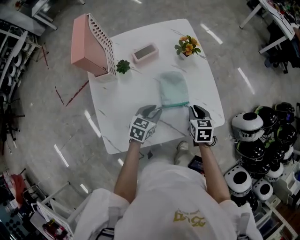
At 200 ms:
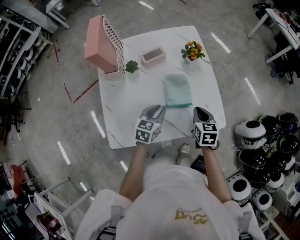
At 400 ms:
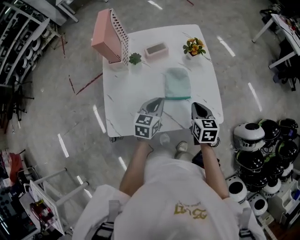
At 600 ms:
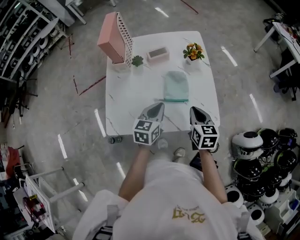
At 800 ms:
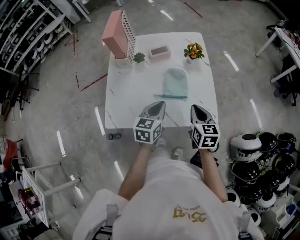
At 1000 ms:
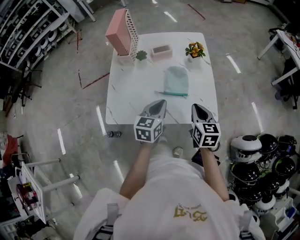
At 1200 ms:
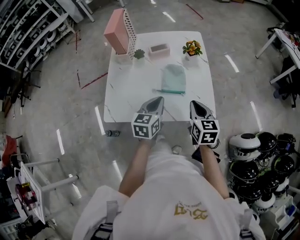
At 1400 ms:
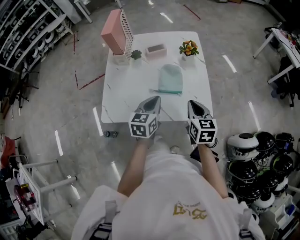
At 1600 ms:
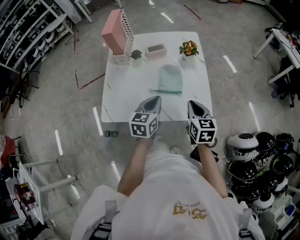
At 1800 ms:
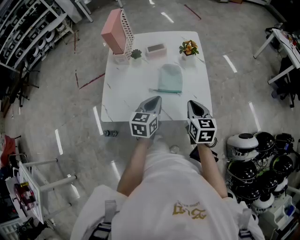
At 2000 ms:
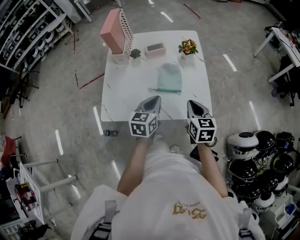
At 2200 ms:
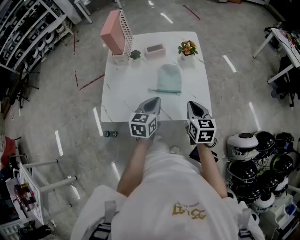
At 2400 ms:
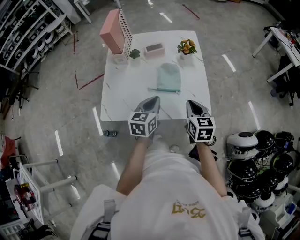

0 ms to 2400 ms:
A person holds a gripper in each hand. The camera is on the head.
0 ms to 1200 ms: The two grippers go roughly 15 cm upward and backward. The left gripper rotates approximately 30 degrees, and closes; the right gripper changes its angle by roughly 30 degrees.
1200 ms to 2400 ms: There are only small adjustments of the grippers.

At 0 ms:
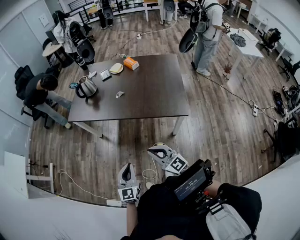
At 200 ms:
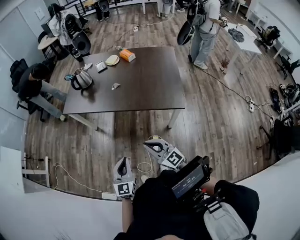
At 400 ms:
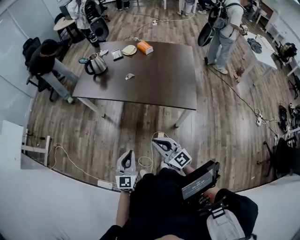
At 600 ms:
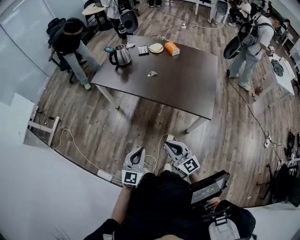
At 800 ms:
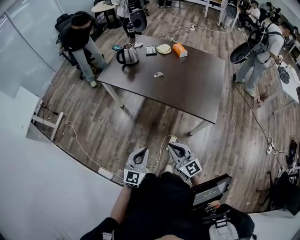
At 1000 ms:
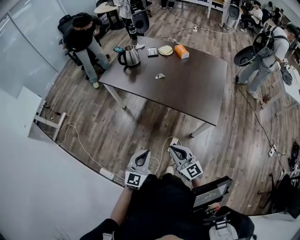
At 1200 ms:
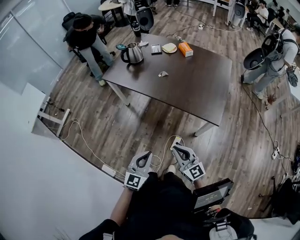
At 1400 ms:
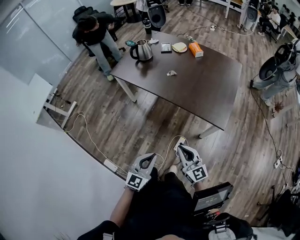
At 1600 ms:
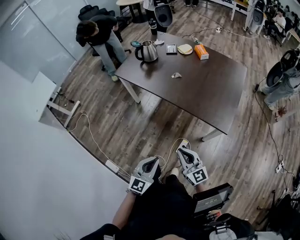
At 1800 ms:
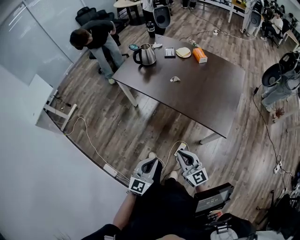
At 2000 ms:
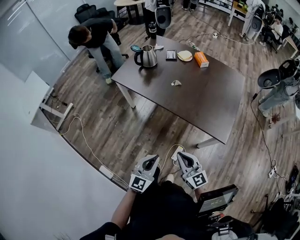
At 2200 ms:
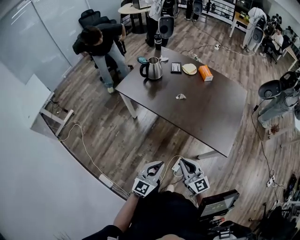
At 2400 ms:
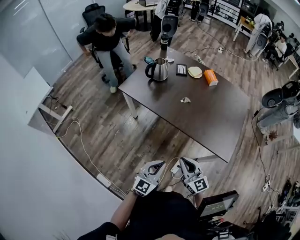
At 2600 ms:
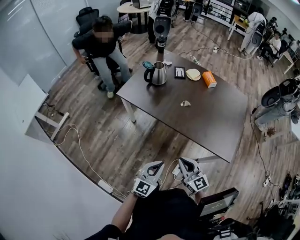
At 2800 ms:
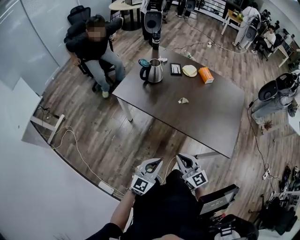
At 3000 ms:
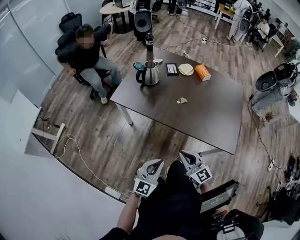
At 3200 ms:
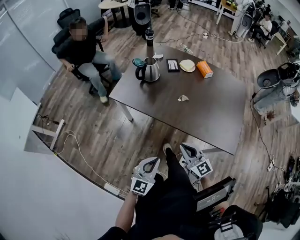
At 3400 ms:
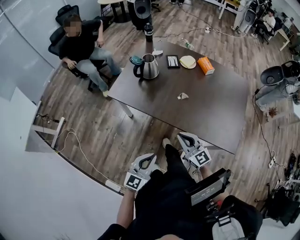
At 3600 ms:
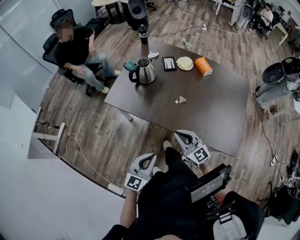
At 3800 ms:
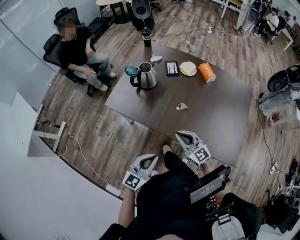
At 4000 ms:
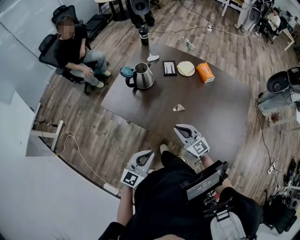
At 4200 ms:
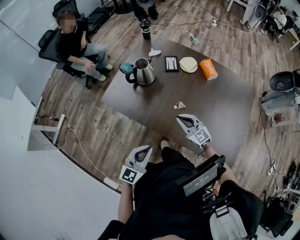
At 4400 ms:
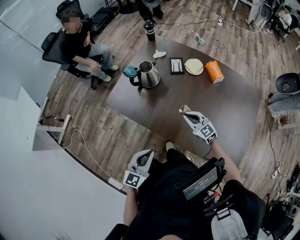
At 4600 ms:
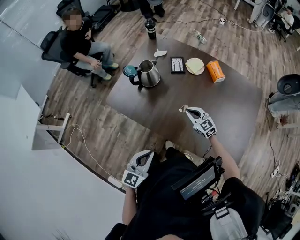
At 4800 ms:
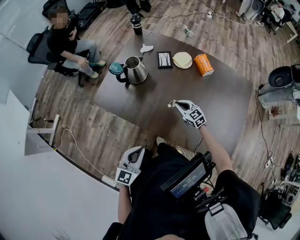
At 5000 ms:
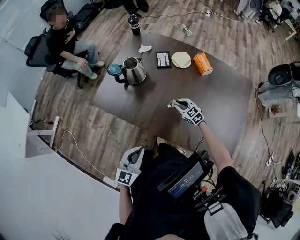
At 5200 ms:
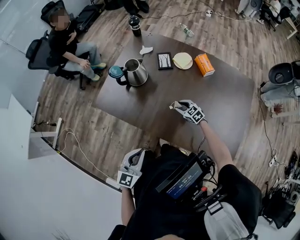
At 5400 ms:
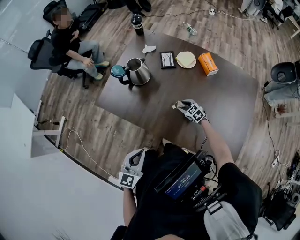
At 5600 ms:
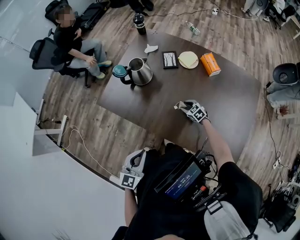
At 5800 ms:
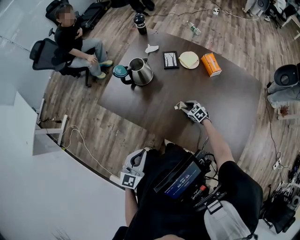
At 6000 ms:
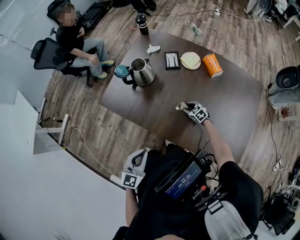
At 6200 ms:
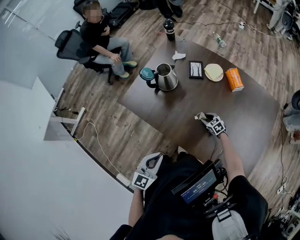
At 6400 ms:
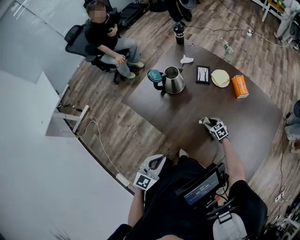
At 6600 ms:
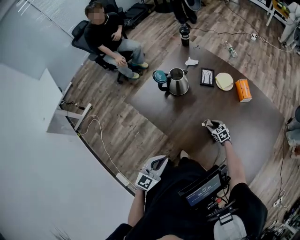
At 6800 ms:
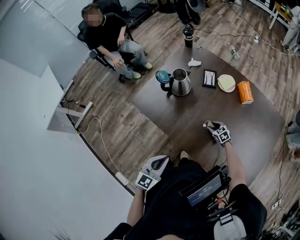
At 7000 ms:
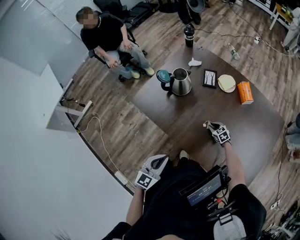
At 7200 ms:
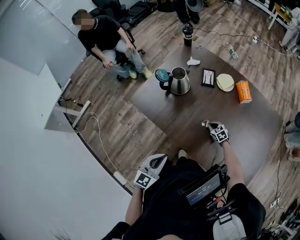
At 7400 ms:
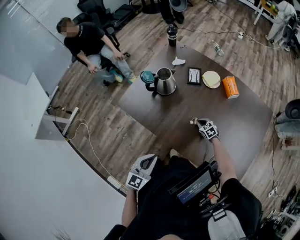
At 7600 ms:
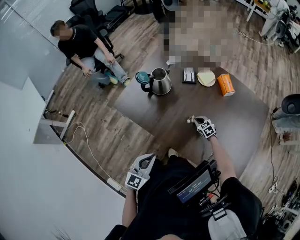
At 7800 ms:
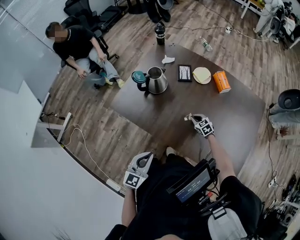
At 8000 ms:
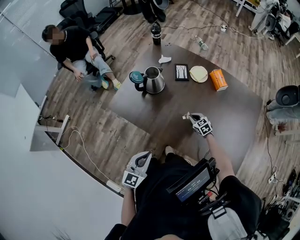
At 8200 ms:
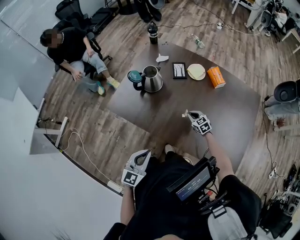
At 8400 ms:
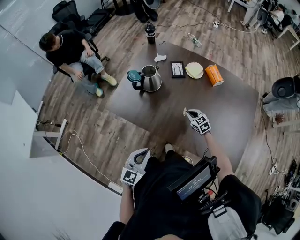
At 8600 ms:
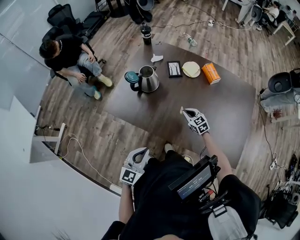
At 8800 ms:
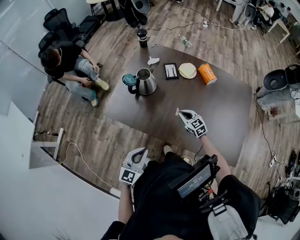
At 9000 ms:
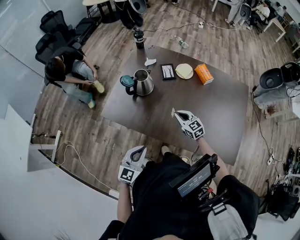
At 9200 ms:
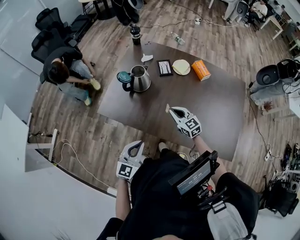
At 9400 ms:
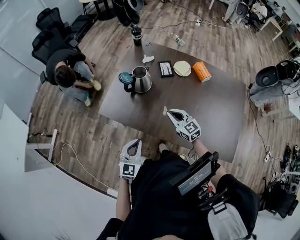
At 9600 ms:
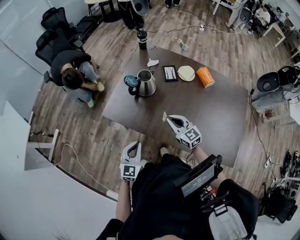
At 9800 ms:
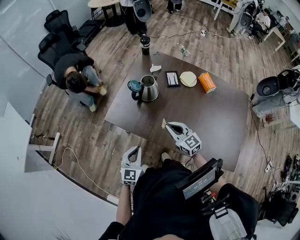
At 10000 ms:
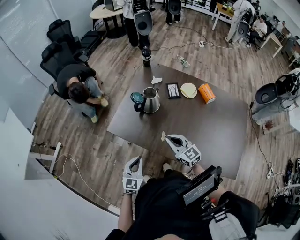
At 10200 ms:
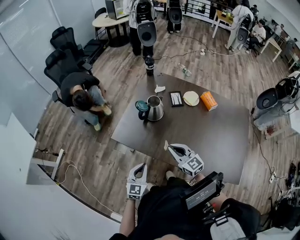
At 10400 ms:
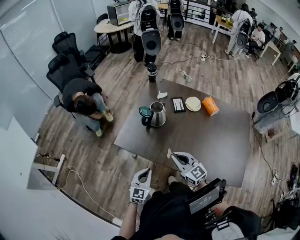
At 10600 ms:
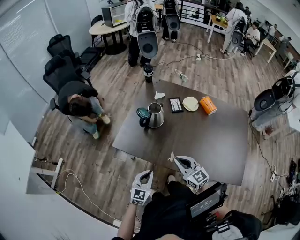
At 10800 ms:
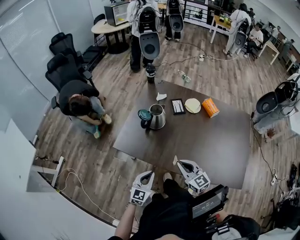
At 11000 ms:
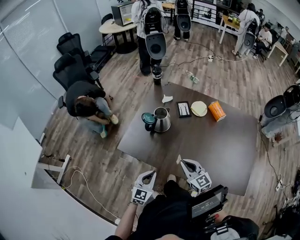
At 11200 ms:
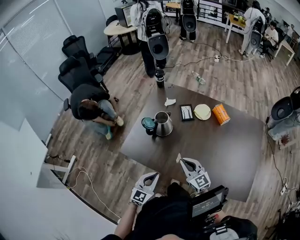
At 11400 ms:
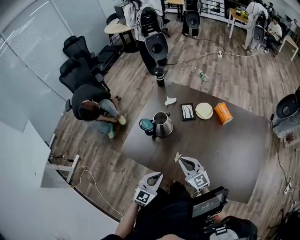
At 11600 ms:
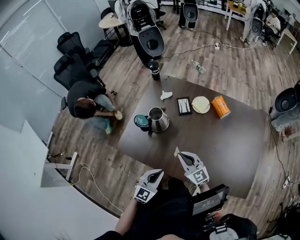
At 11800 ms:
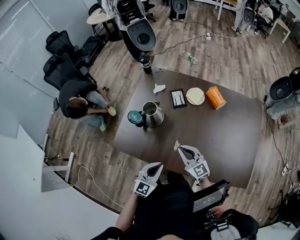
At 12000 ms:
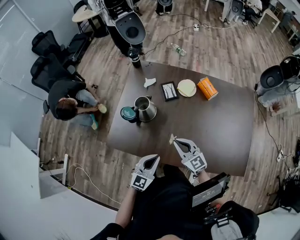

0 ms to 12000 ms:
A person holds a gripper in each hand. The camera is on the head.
0 ms to 1600 ms: The right gripper moves roughly 5 cm. Meanwhile the left gripper moves to the right, roughly 5 cm.
1600 ms to 3000 ms: The grippers both shift forward and to the left by roughly 25 cm.
3000 ms to 4400 ms: The right gripper shifts roughly 35 cm forward. The left gripper heads forward, covering approximately 20 cm.
4400 ms to 6000 ms: The right gripper goes some 25 cm downward, points its fingers approximately 30 degrees further downward, and opens up.
6000 ms to 7600 ms: The right gripper closes its fingers.
7600 ms to 9000 ms: The right gripper moves upward and to the left, roughly 20 cm, and rotates roughly 30 degrees; the left gripper changes place by roughly 5 cm.
9000 ms to 10400 ms: The left gripper shifts approximately 5 cm to the left, while the right gripper shifts about 20 cm to the left, upward and backward.
10400 ms to 12000 ms: The left gripper travels to the right and forward by some 15 cm. Meanwhile the right gripper travels forward, to the right and downward by roughly 15 cm.

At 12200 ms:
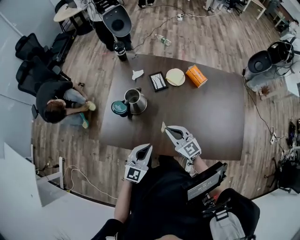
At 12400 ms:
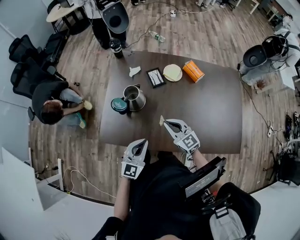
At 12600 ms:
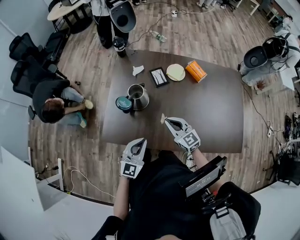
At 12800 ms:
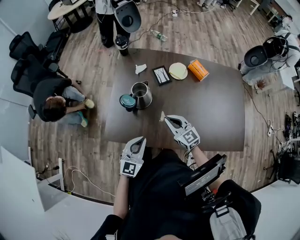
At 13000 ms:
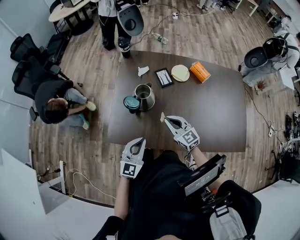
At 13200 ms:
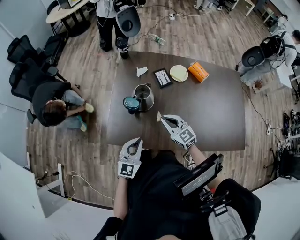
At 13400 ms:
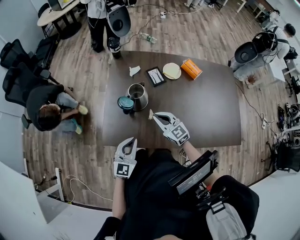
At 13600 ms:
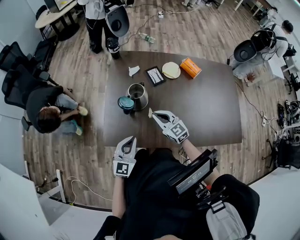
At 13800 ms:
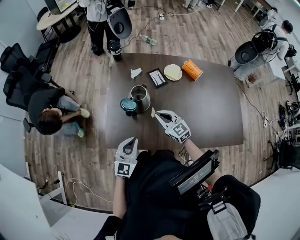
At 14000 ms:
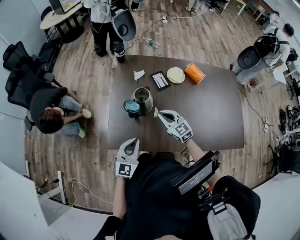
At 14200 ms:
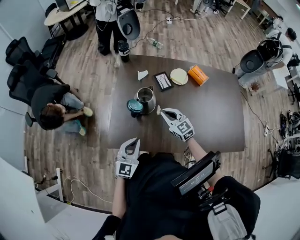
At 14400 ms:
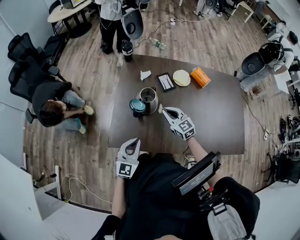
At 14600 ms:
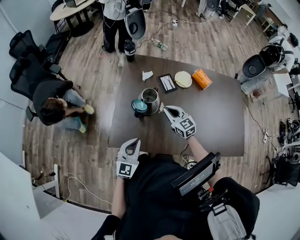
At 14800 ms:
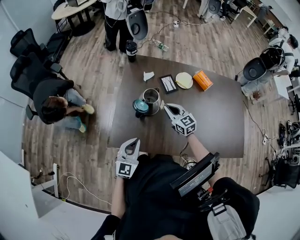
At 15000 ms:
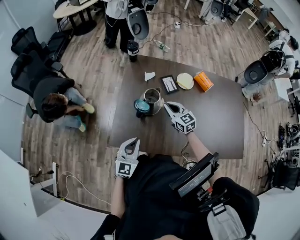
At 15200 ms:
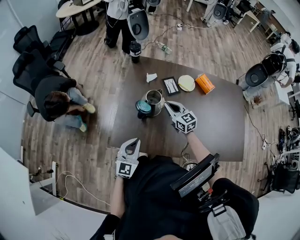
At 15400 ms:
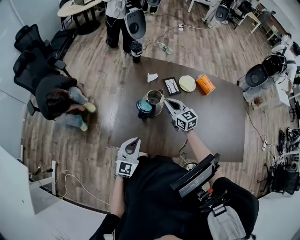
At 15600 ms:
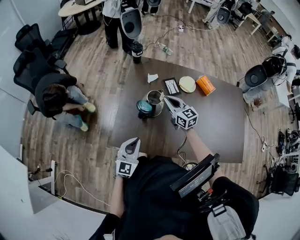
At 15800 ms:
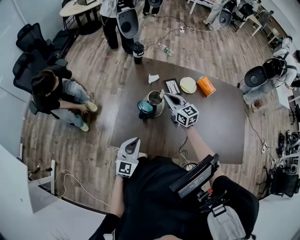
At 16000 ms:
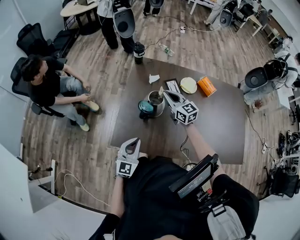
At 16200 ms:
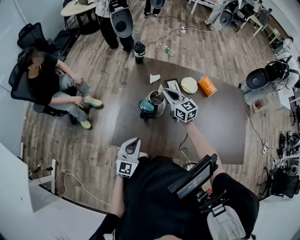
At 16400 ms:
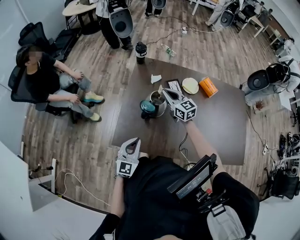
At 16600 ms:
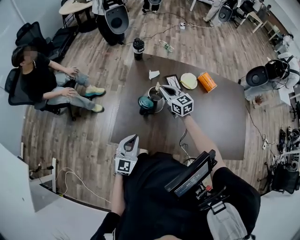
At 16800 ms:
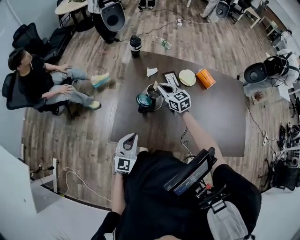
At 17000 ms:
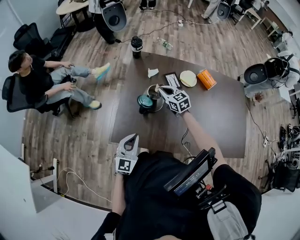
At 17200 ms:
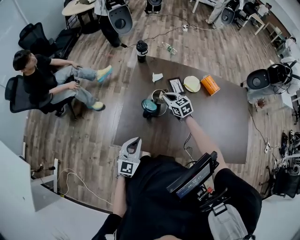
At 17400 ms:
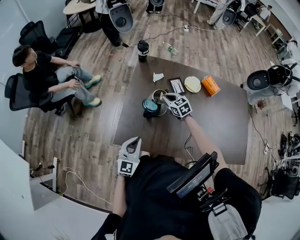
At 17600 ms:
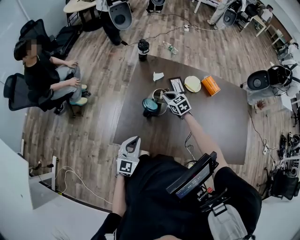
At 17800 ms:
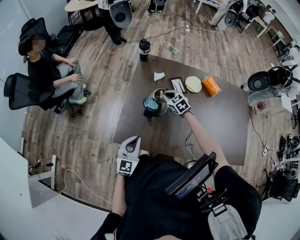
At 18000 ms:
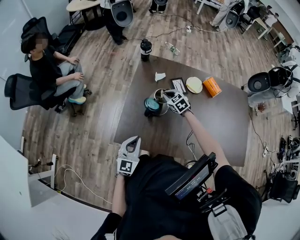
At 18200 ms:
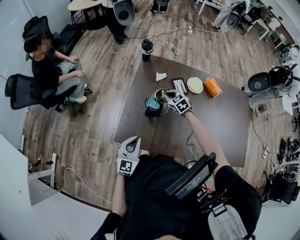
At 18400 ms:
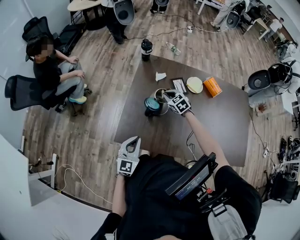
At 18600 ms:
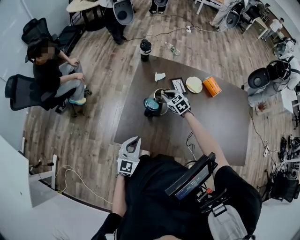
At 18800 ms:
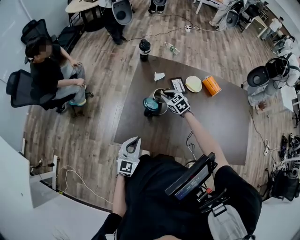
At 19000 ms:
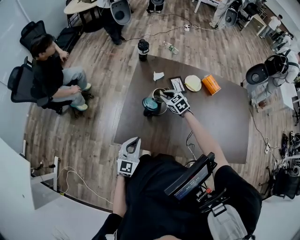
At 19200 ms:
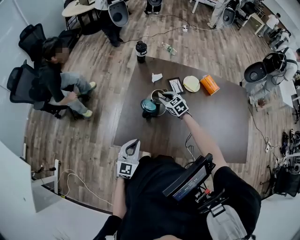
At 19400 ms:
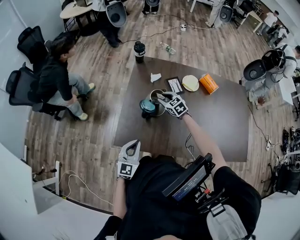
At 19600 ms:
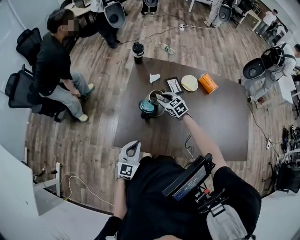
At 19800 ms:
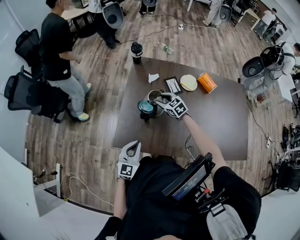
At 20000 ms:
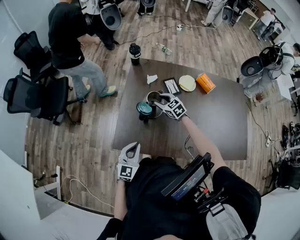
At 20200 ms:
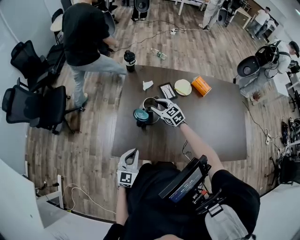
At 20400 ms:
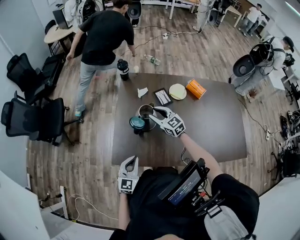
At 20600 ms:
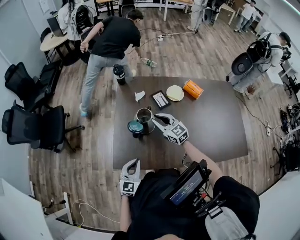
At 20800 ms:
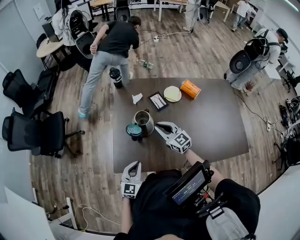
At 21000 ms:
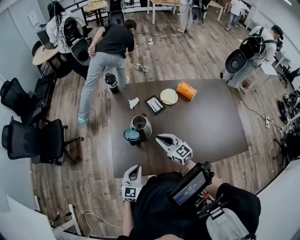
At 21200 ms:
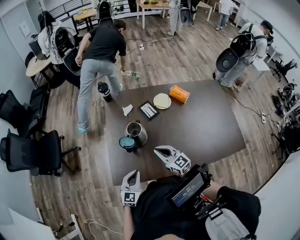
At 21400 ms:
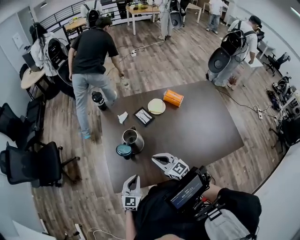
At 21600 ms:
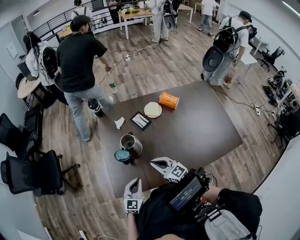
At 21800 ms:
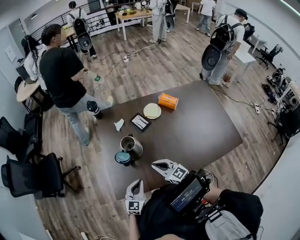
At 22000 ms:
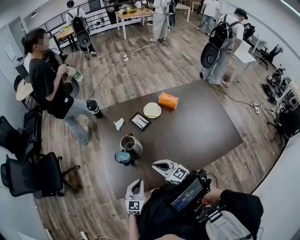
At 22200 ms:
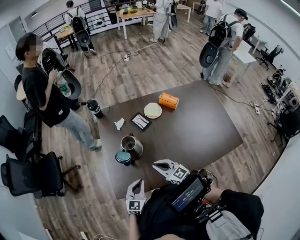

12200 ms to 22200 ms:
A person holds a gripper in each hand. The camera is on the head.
12200 ms to 13600 ms: The left gripper shifts some 15 cm to the left, while the right gripper moves to the left and forward, roughly 15 cm.
13600 ms to 15000 ms: The right gripper travels forward by approximately 10 cm.
15000 ms to 16400 ms: The right gripper moves forward and upward, roughly 10 cm.
16400 ms to 18000 ms: The right gripper shifts approximately 10 cm downward, and tilts its fingers some 30 degrees downward.
18000 ms to 19400 ms: The right gripper opens its fingers.
19400 ms to 20800 ms: The right gripper is displaced backward and upward by some 15 cm, and turns by approximately 30 degrees.
20800 ms to 22200 ms: The right gripper moves backward, some 10 cm.
